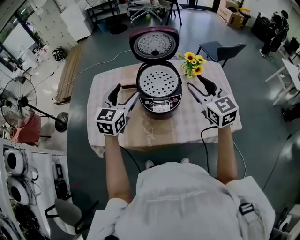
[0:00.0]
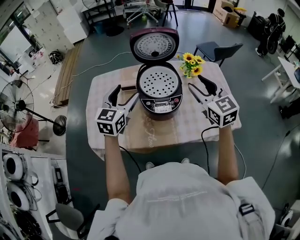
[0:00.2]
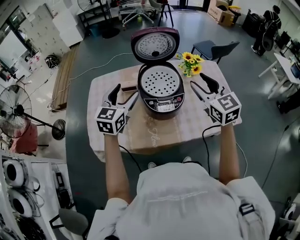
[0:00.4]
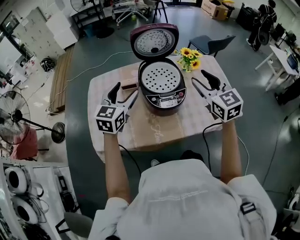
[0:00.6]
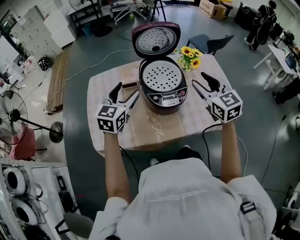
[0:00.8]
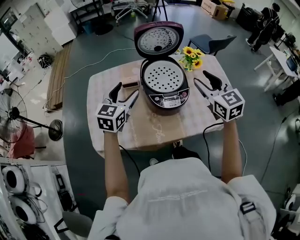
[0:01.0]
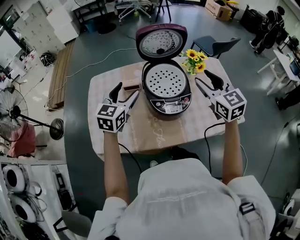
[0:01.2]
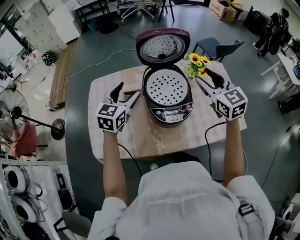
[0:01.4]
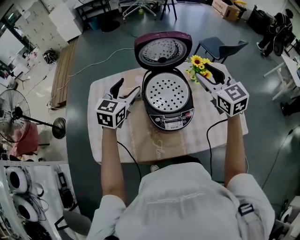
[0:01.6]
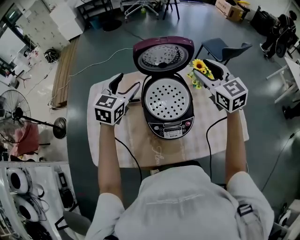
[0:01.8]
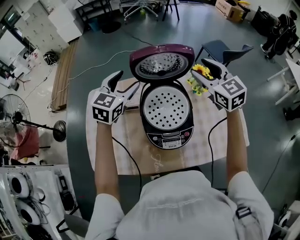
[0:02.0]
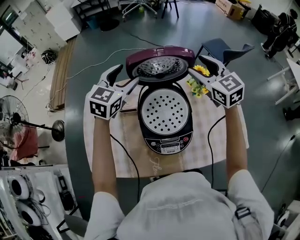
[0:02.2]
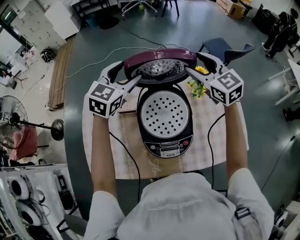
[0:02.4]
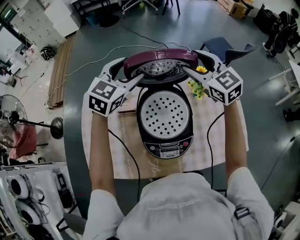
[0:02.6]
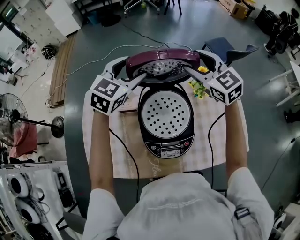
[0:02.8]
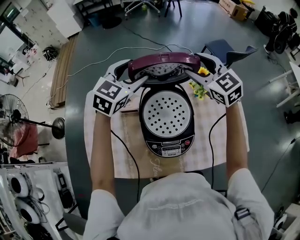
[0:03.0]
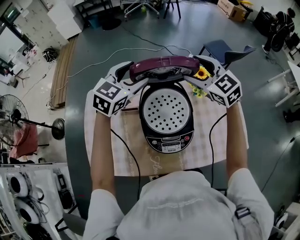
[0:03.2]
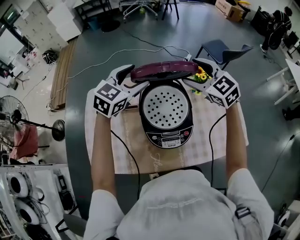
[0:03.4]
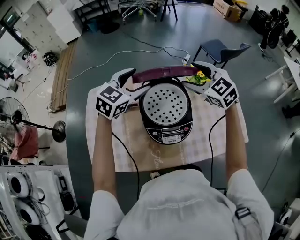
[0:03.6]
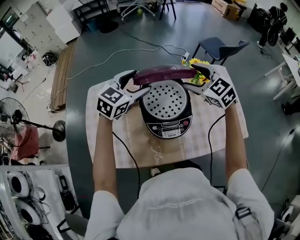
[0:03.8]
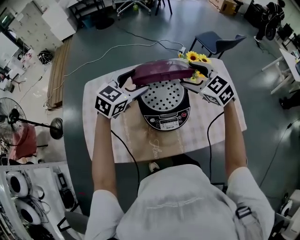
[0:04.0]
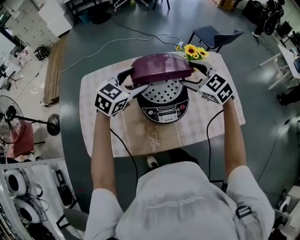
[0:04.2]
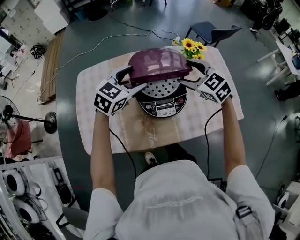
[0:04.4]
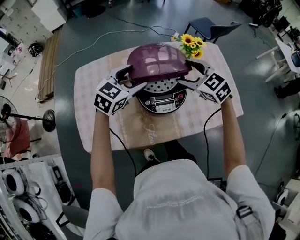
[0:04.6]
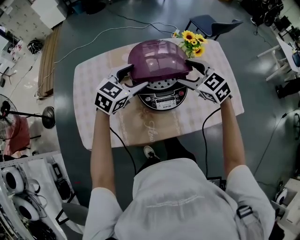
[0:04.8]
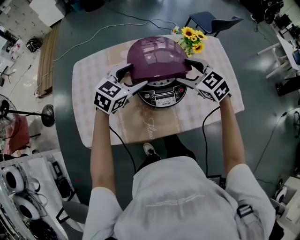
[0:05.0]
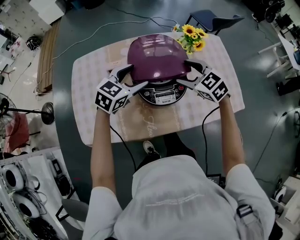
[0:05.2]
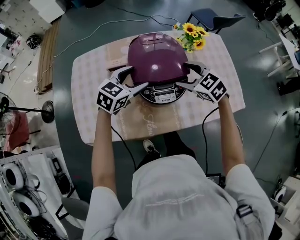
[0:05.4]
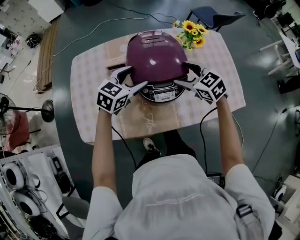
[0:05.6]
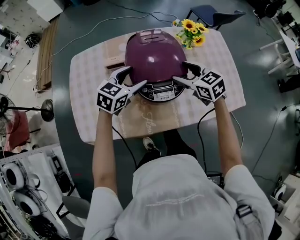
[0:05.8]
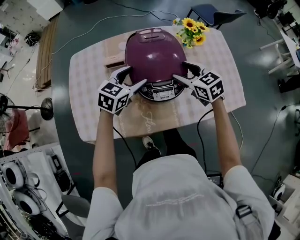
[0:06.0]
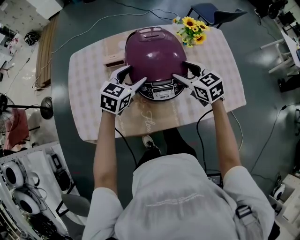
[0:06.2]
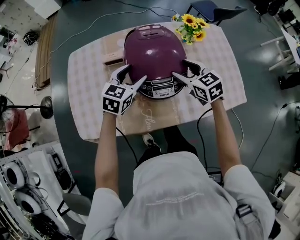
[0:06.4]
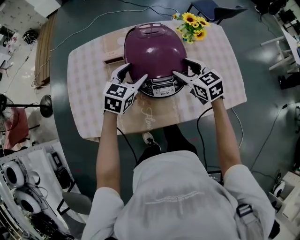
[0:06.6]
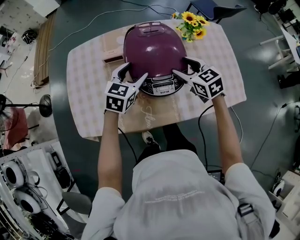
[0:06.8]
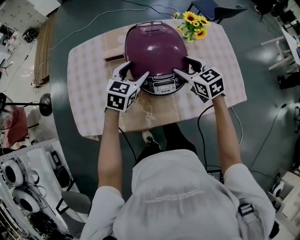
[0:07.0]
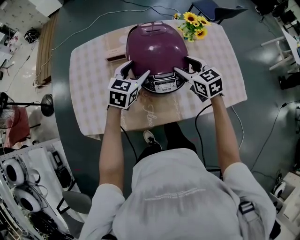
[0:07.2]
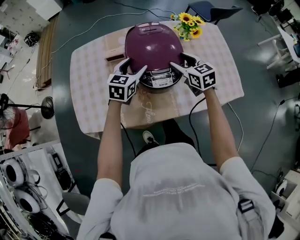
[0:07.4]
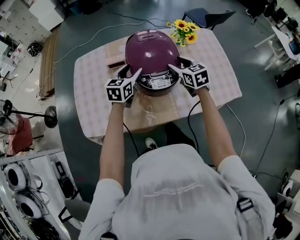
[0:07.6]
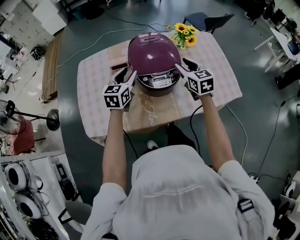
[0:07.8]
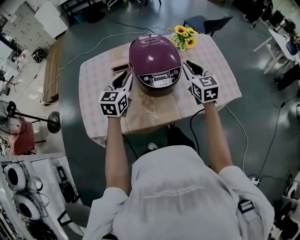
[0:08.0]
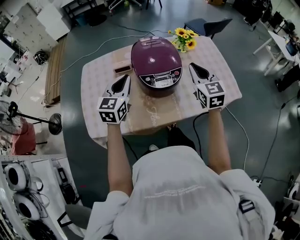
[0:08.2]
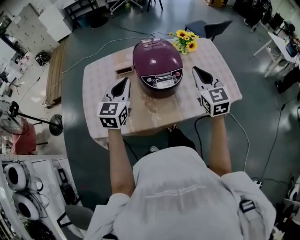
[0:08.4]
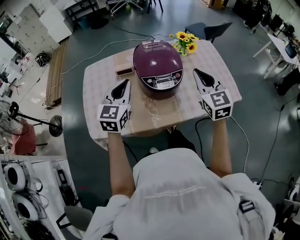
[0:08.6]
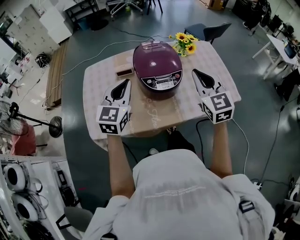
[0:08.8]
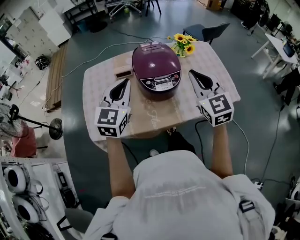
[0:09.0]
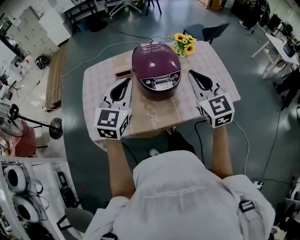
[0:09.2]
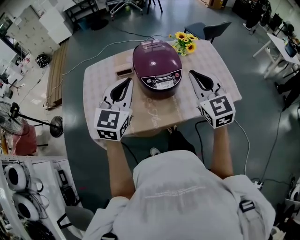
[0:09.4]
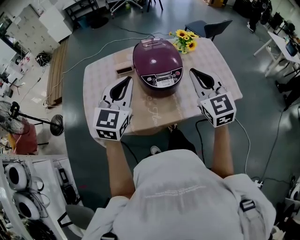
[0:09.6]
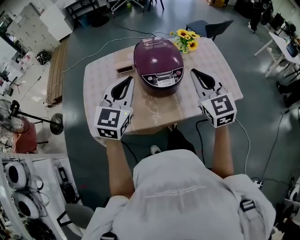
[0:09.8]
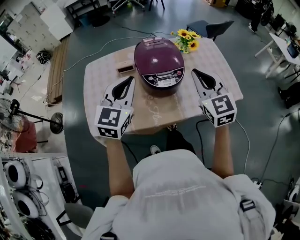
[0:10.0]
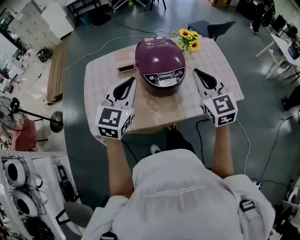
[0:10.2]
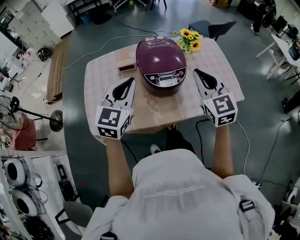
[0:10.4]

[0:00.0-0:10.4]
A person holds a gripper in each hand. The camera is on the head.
0:00.0 to 0:01.4: The two grippers go roughly 10 cm forward.
0:01.4 to 0:03.0: The right gripper goes about 20 cm forward, while the left gripper moves forward and to the right, approximately 20 cm.
0:03.0 to 0:04.4: The two grippers go roughly 20 cm backward and downward.
0:04.4 to 0:06.0: The grippers both shift downward by approximately 10 cm. The right gripper turns by roughly 20 degrees.
0:06.0 to 0:07.4: The grippers move only a little.
0:07.4 to 0:09.0: Both grippers travel together upward and backward, about 25 cm. The left gripper rotates about 20 degrees, and closes up. The right gripper changes its angle by roughly 30 degrees, and closes up.
0:09.0 to 0:10.4: The grippers make only small movements.

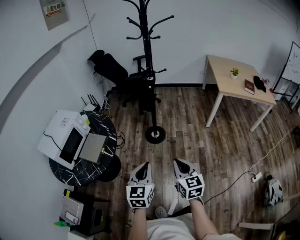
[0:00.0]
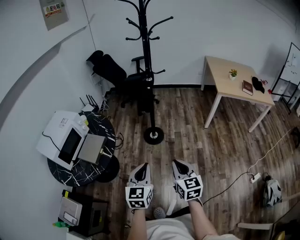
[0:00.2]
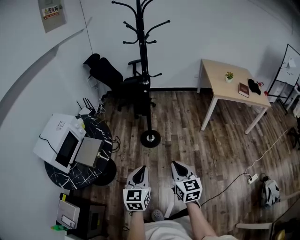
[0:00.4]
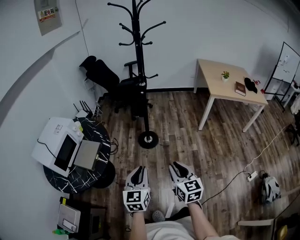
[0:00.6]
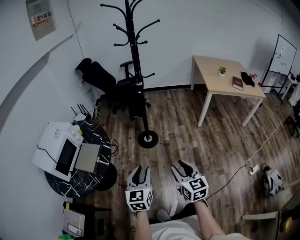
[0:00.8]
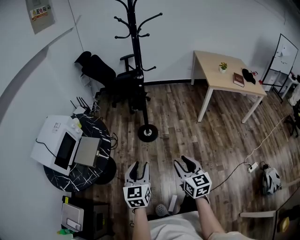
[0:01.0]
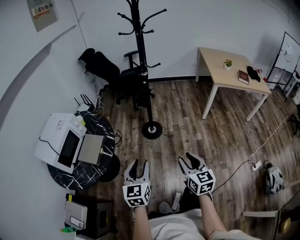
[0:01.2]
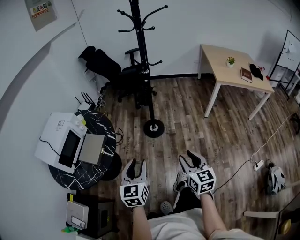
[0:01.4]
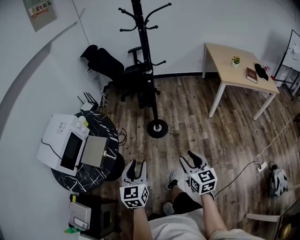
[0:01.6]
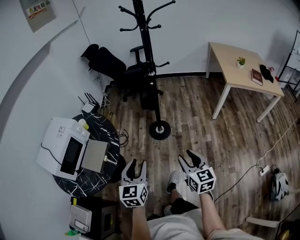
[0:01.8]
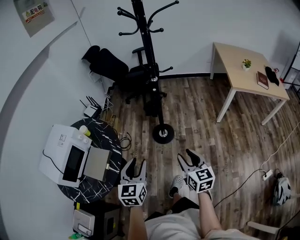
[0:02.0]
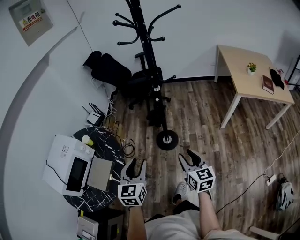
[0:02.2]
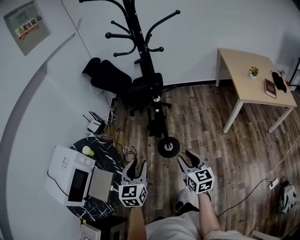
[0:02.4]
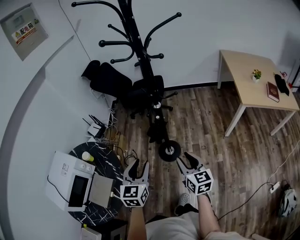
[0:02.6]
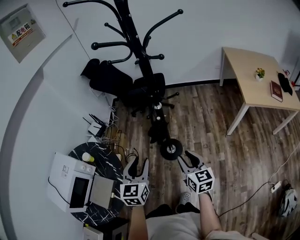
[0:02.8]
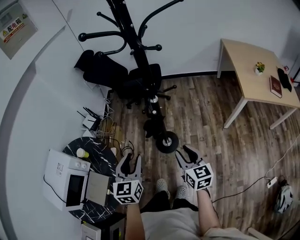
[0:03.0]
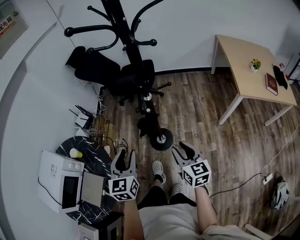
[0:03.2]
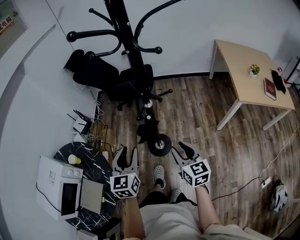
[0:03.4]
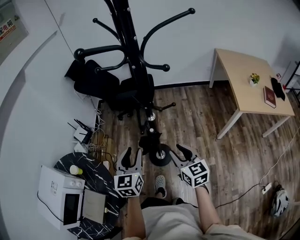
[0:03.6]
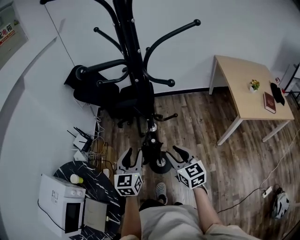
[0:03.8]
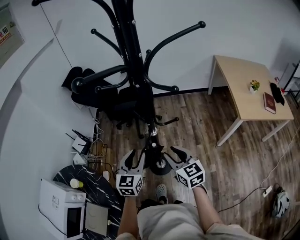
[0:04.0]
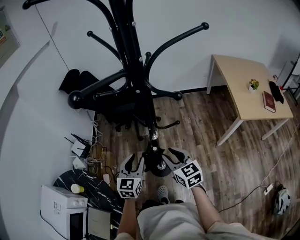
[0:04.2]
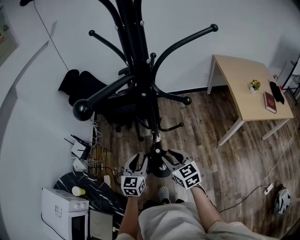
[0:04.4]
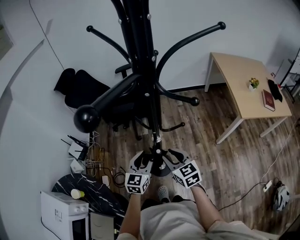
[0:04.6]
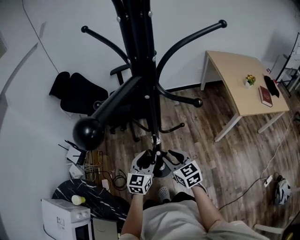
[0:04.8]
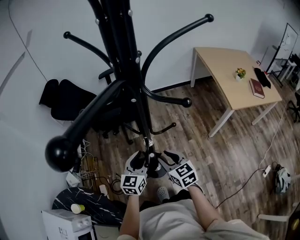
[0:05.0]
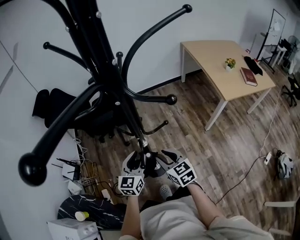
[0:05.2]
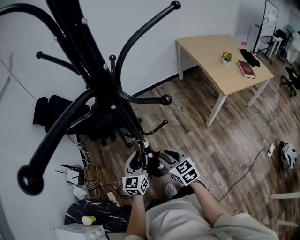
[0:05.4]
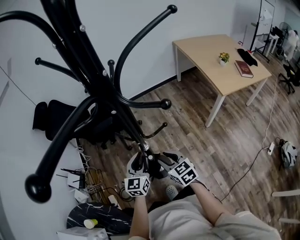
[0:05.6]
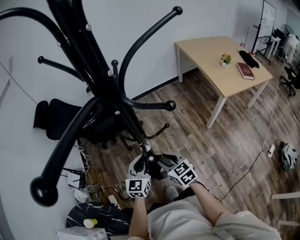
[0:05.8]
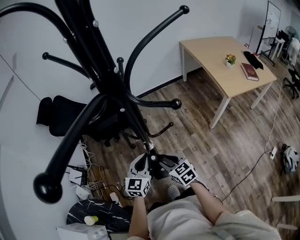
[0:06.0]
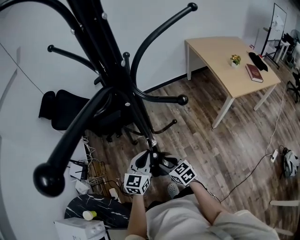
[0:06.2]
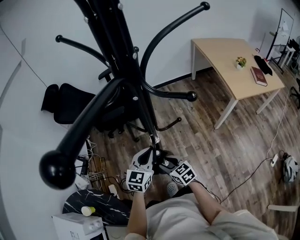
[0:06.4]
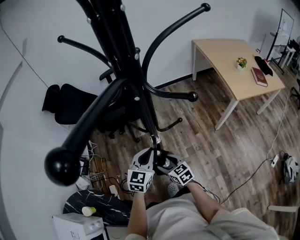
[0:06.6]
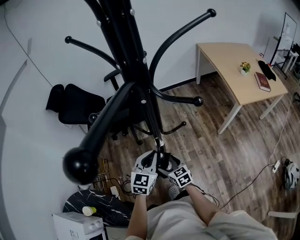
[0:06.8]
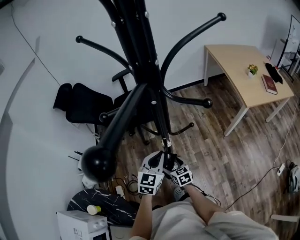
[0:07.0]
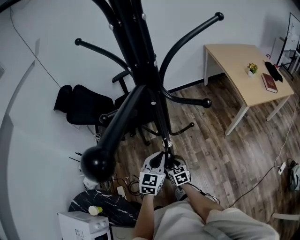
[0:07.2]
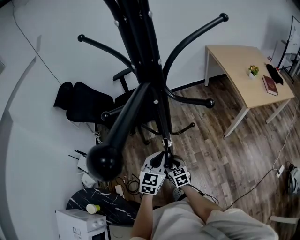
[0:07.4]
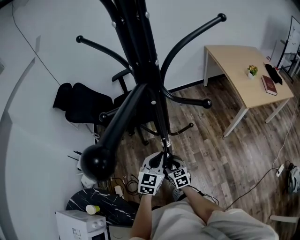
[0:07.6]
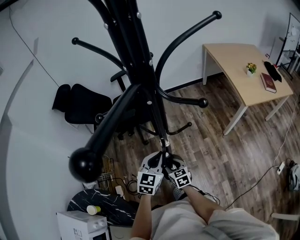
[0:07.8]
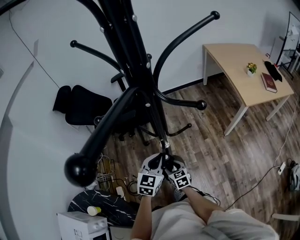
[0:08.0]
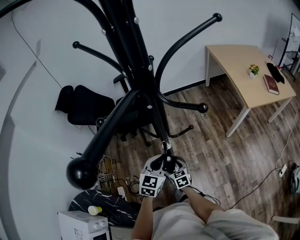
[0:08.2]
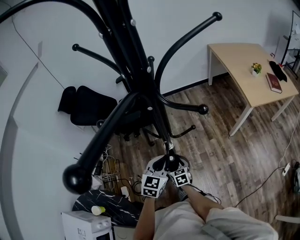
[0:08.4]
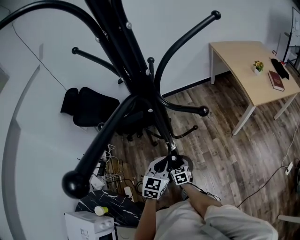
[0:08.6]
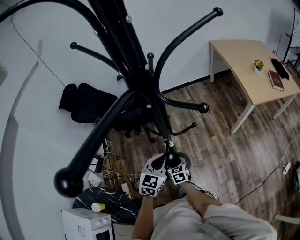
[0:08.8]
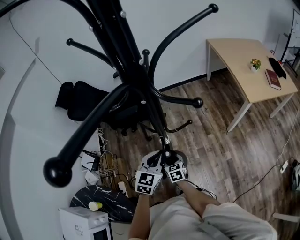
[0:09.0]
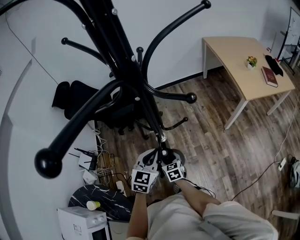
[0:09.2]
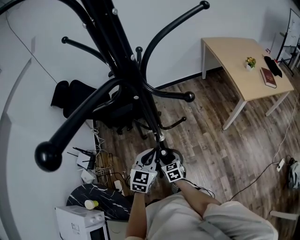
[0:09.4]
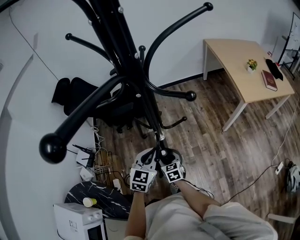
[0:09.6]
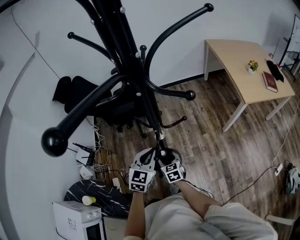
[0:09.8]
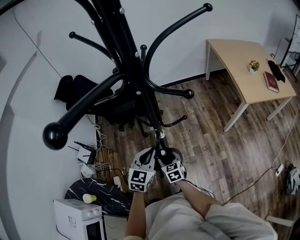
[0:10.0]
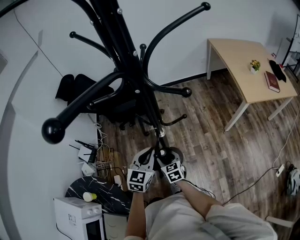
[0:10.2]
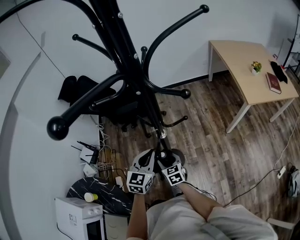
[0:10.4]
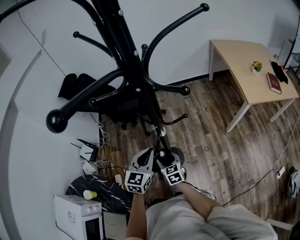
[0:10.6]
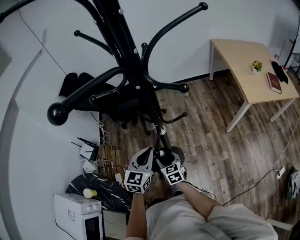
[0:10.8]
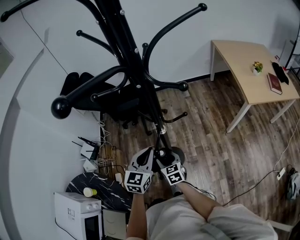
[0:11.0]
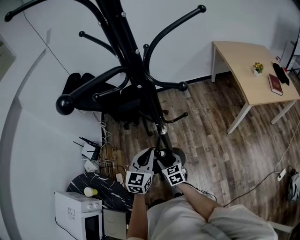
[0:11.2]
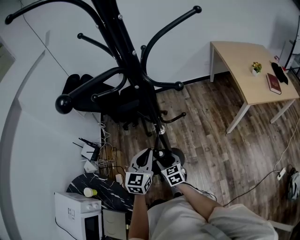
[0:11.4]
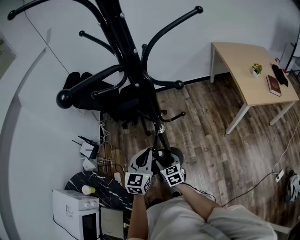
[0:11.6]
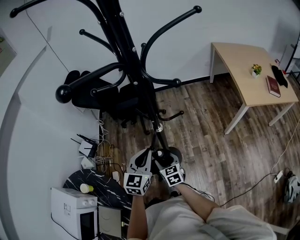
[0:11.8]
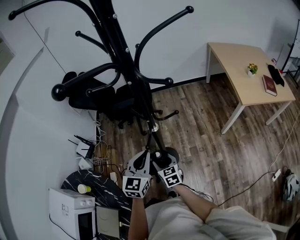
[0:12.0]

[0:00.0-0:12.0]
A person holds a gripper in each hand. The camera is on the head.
0:00.0 to 0:01.6: The right gripper travels forward by approximately 5 cm, and opens up, while the left gripper goes some 10 cm to the left and forward, and opens.
0:01.6 to 0:03.0: The grippers both shift forward by approximately 40 cm.
0:03.0 to 0:04.4: Both grippers travel together forward, roughly 25 cm.
0:04.4 to 0:06.0: The right gripper shifts roughly 10 cm downward. The left gripper shifts some 5 cm forward, and closes.
0:06.0 to 0:07.6: The right gripper moves downward and to the left, approximately 10 cm, and opens and closes again.
0:07.6 to 0:09.0: The right gripper opens and closes again.
0:09.0 to 0:10.4: The right gripper travels upward by some 5 cm.
0:10.4 to 0:12.0: Both grippers travel together backward, approximately 5 cm.

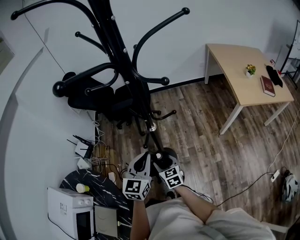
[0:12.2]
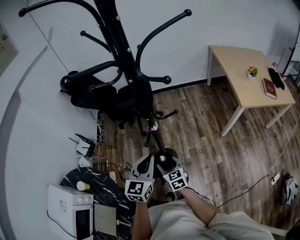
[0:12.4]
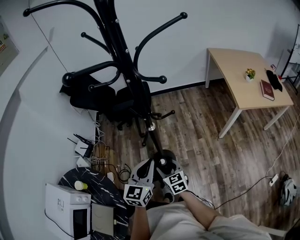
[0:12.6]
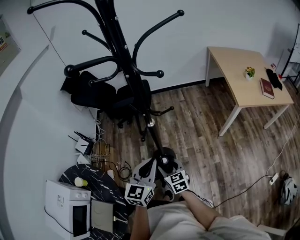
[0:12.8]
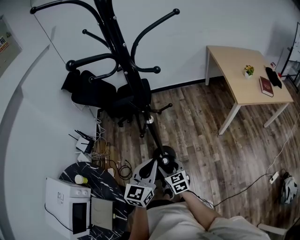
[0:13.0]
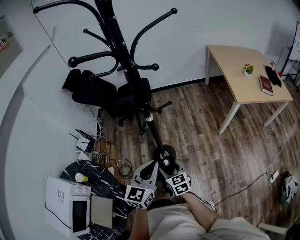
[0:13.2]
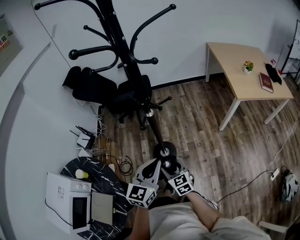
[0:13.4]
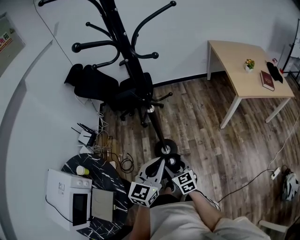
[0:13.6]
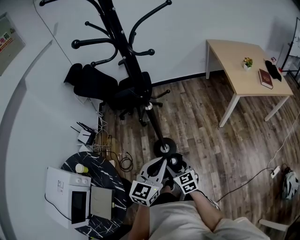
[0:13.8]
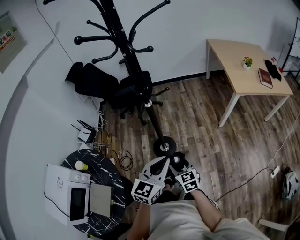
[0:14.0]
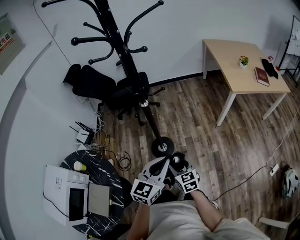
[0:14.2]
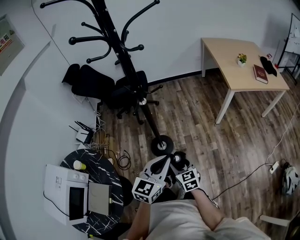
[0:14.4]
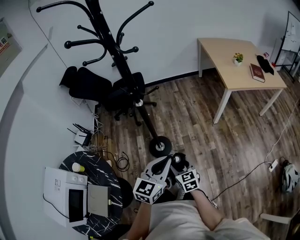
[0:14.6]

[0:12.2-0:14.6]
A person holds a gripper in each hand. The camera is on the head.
0:12.2 to 0:13.4: Both grippers travel together backward, approximately 15 cm.
0:13.4 to 0:14.6: Both grippers move to the right and backward, some 10 cm.
